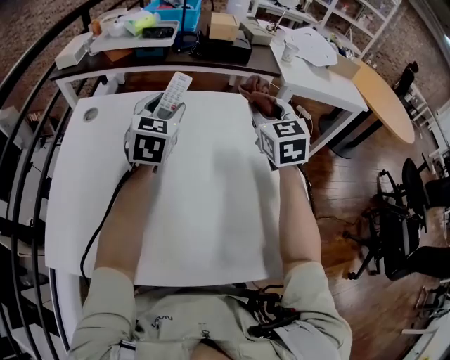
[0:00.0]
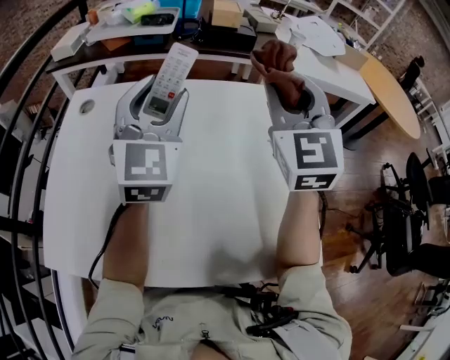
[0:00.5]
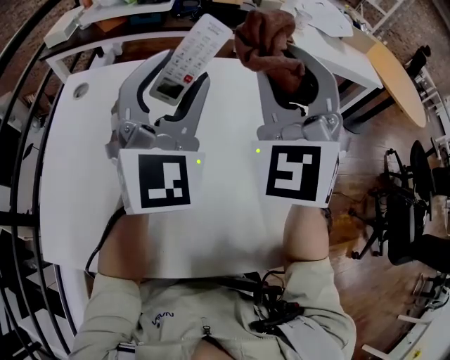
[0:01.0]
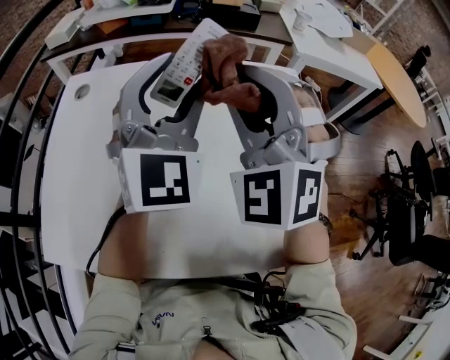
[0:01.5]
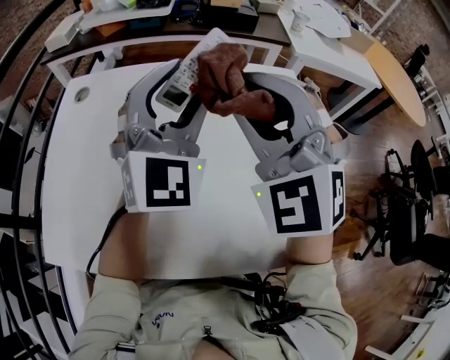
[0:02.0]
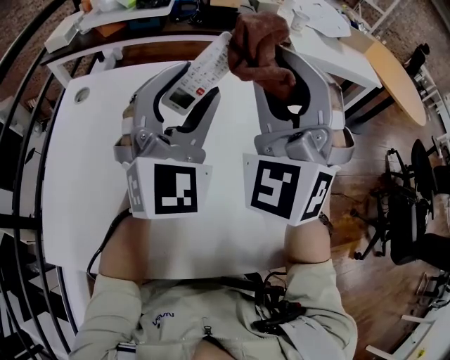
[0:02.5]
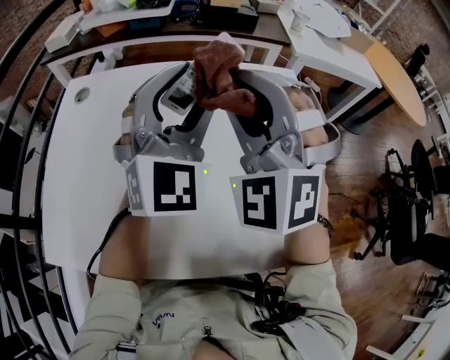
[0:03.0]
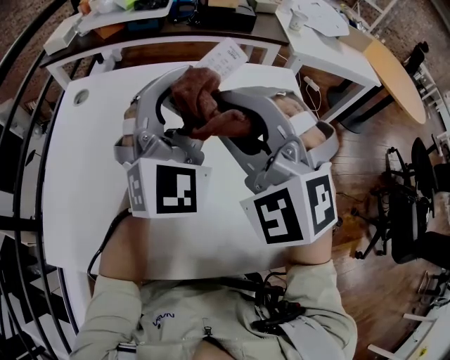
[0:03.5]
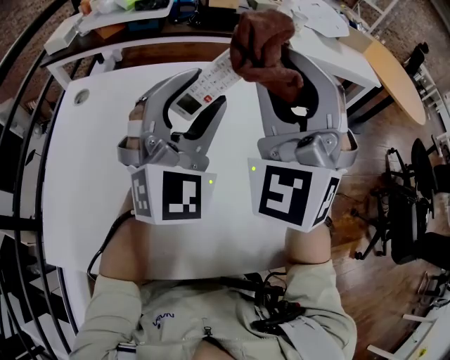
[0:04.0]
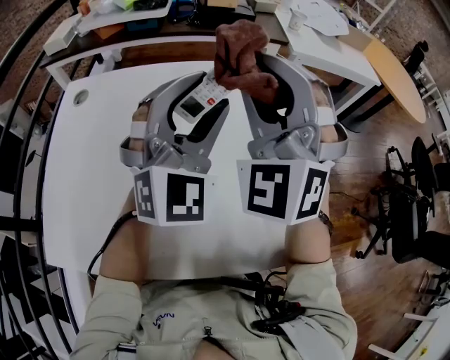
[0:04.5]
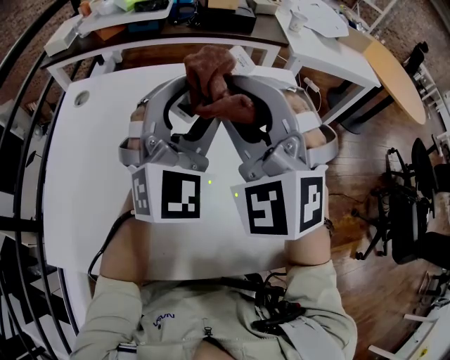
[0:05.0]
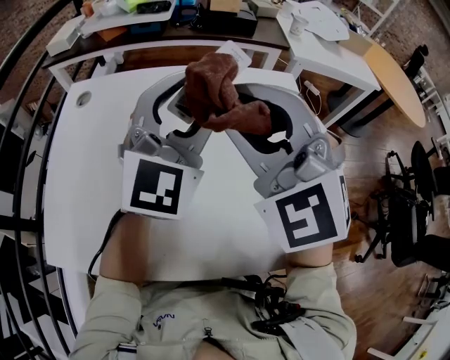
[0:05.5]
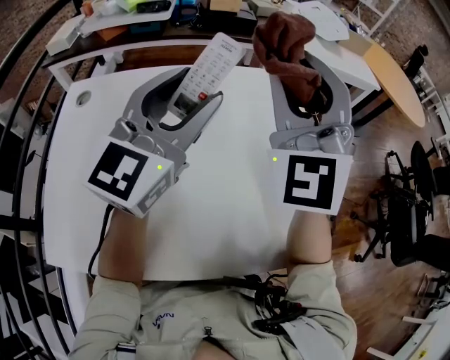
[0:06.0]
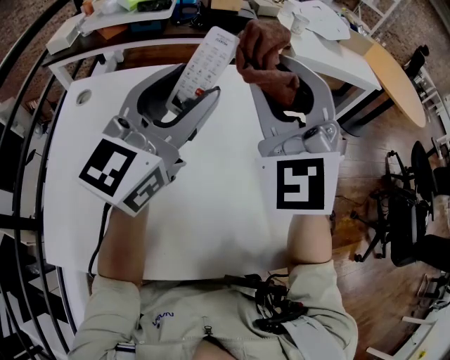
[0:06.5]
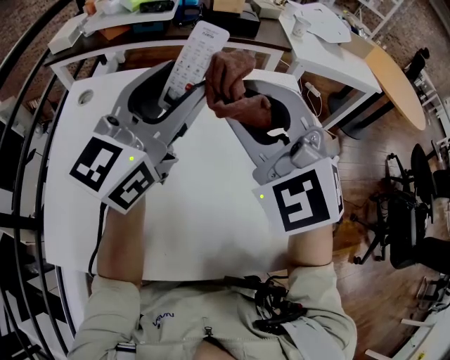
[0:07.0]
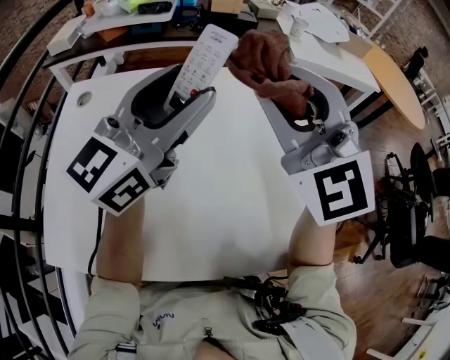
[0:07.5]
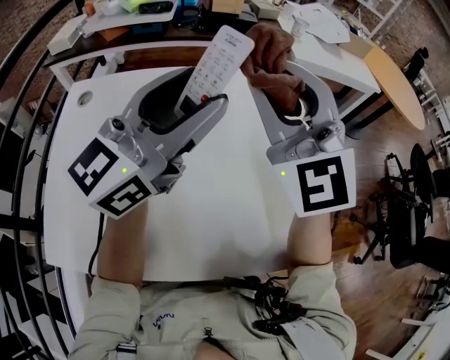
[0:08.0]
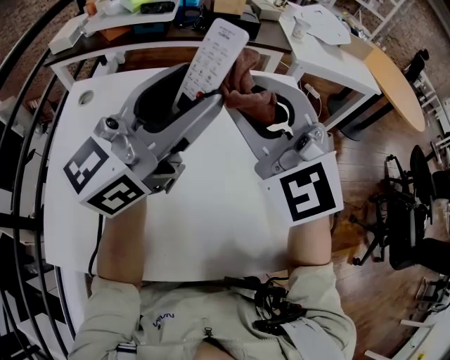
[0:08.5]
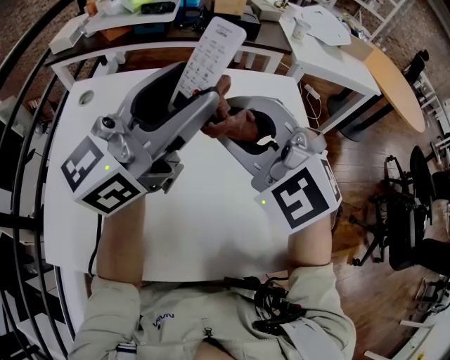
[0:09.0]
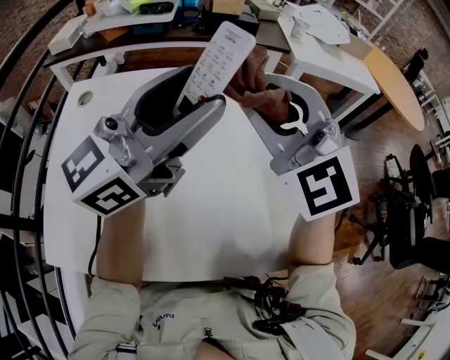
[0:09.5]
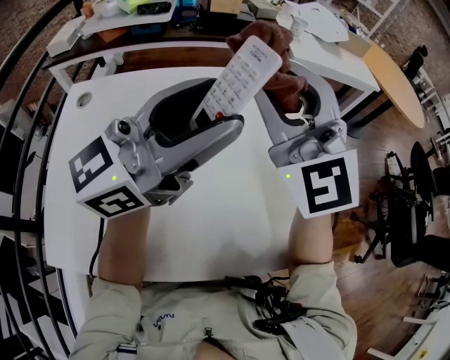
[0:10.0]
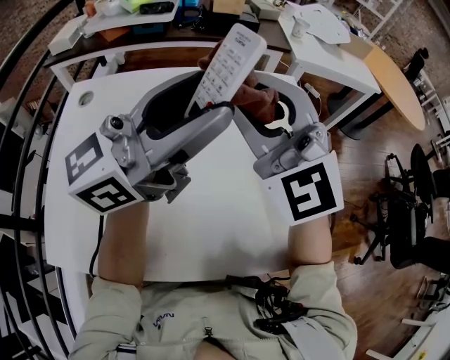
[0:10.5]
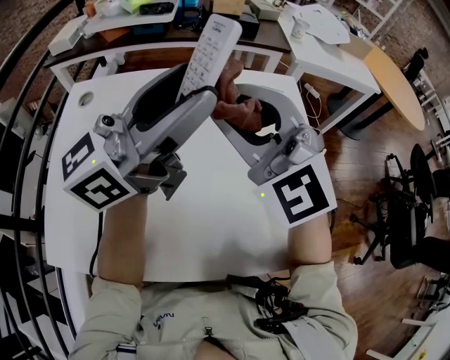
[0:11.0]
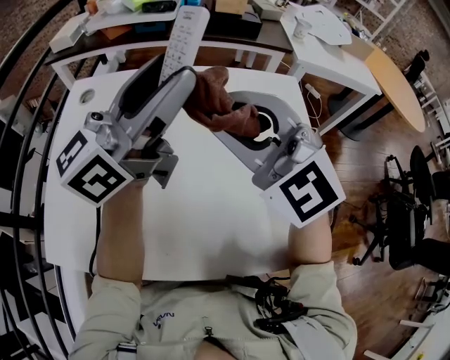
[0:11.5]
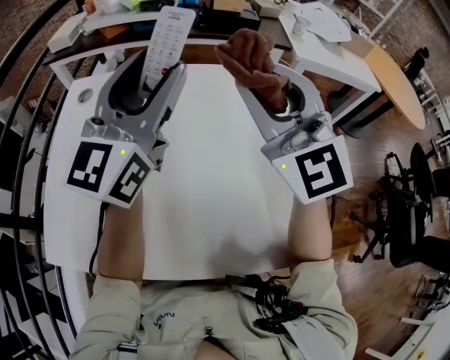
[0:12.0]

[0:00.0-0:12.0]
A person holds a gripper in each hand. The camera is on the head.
0:00.0 to 0:02.0: The right gripper is displaced backward, to the left and upward by approximately 20 cm, and rolls counterclockwise, seen from behind, by roughly 50 degrees; the left gripper shifts some 15 cm backward, upward and to the right, and rotates roughly 30 degrees.
0:02.0 to 0:04.0: The right gripper ends up some 5 cm from where it was, and turns by some 20 degrees.
0:04.0 to 0:06.0: The left gripper turns by about 40 degrees.
0:06.0 to 0:08.0: The left gripper changes its angle by roughly 20 degrees. The right gripper turns by approximately 20 degrees.
0:08.0 to 0:10.0: The right gripper reaches about 10 cm downward, then returns.
0:10.0 to 0:12.0: The left gripper moves to the left and forward, some 10 cm, and turns by some 40 degrees.

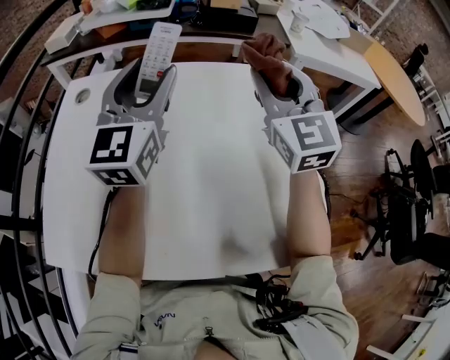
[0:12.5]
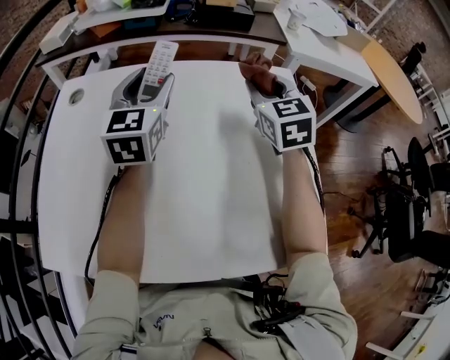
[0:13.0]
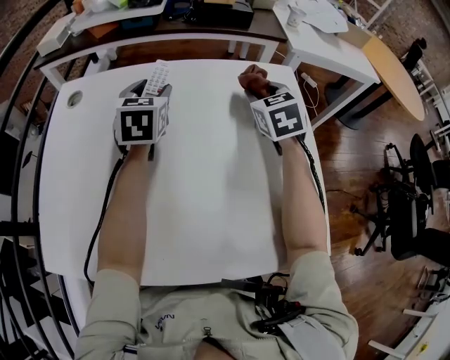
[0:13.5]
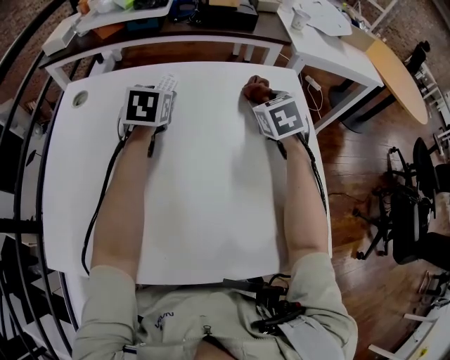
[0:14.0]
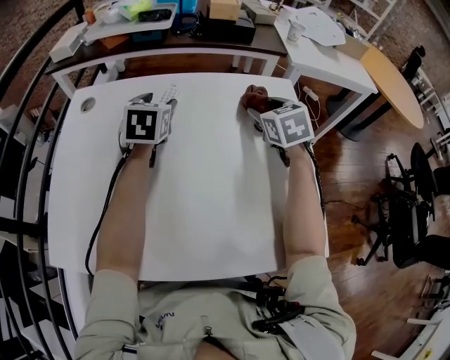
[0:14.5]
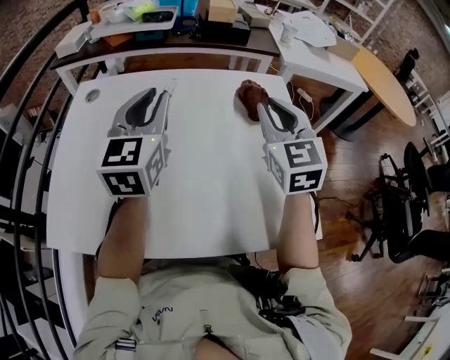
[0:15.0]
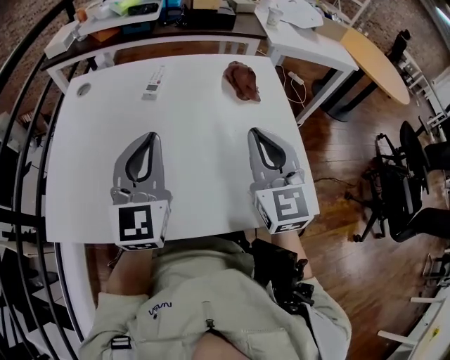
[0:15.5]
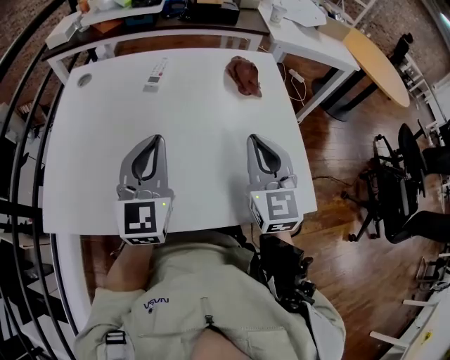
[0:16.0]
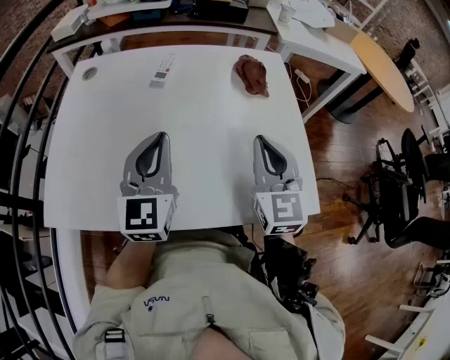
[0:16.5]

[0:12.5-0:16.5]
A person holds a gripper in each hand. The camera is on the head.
0:12.5 to 0:14.5: The left gripper is displaced downward and forward by about 15 cm, and angles its fingers downward, by approximately 40 degrees; the right gripper travels downward by some 15 cm, and tilts its fingers about 40 degrees downward.
0:14.5 to 0:16.5: Both grippers travel together backward, some 25 cm. The right gripper points its fingers some 30 degrees further upward, and closes up. Meanwhile the left gripper changes its angle by about 30 degrees, and closes its fingers.

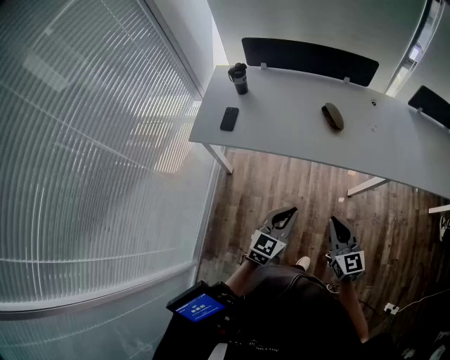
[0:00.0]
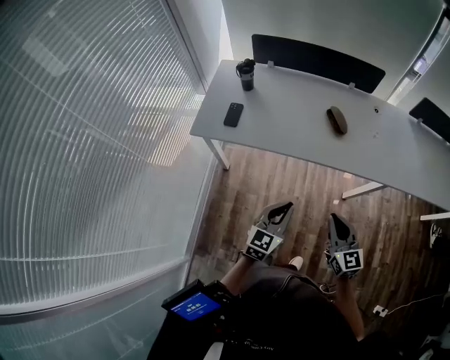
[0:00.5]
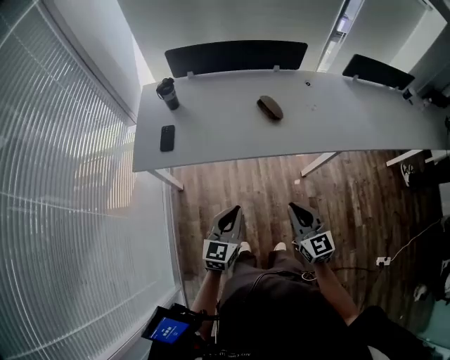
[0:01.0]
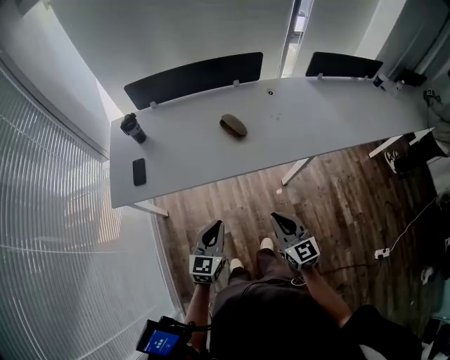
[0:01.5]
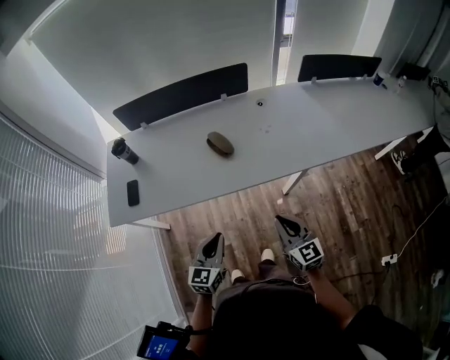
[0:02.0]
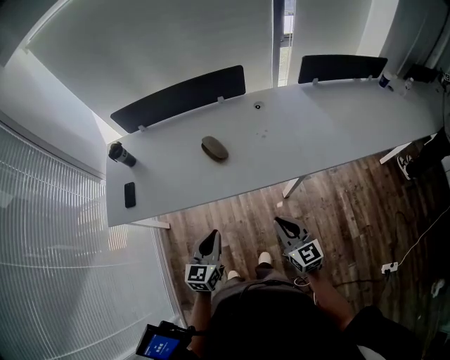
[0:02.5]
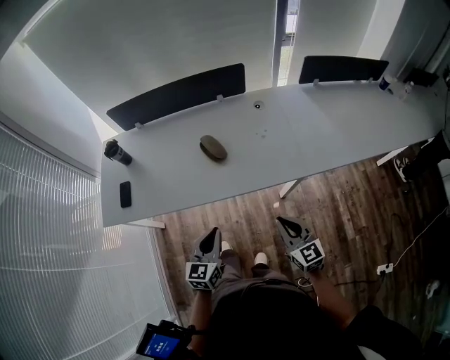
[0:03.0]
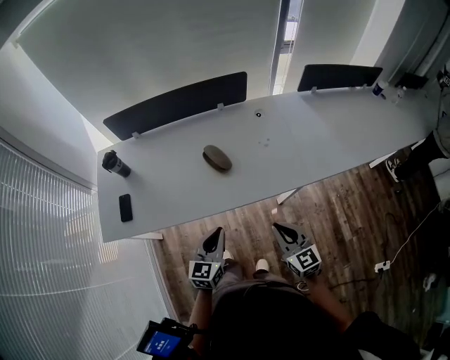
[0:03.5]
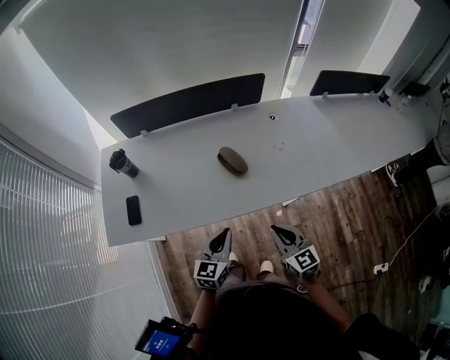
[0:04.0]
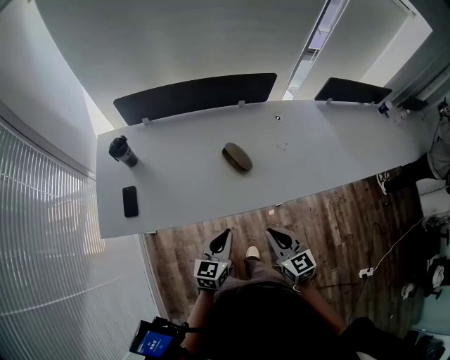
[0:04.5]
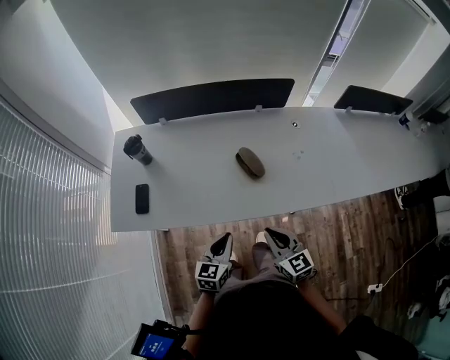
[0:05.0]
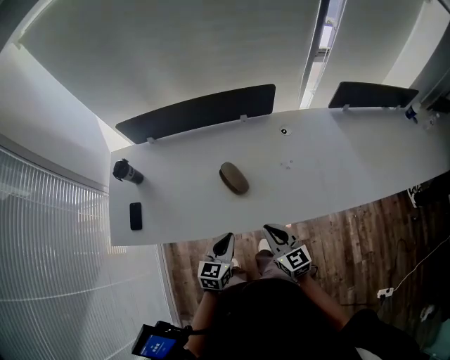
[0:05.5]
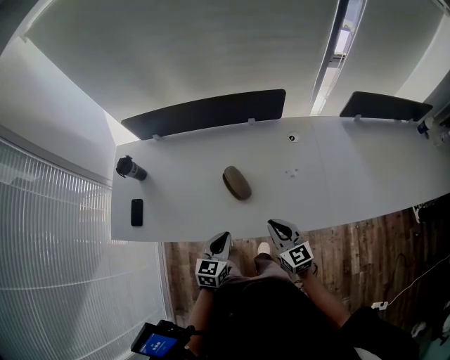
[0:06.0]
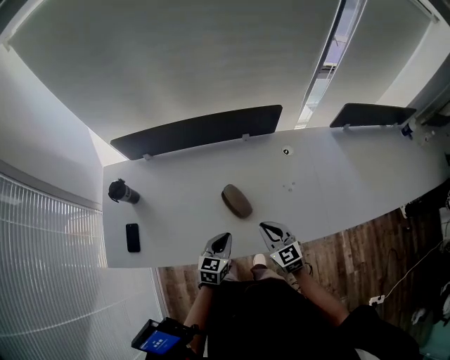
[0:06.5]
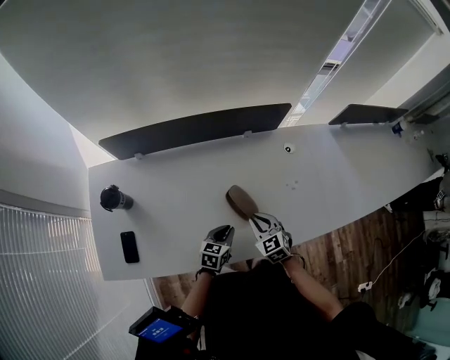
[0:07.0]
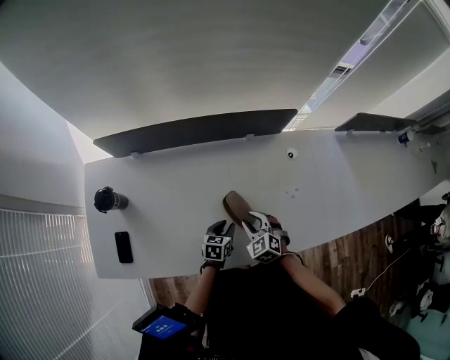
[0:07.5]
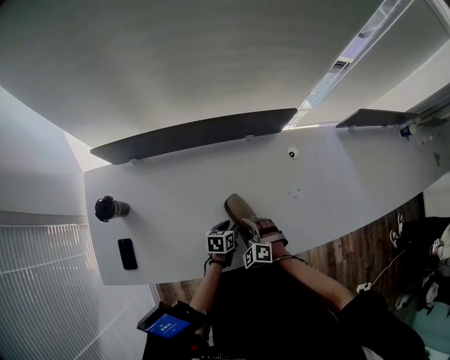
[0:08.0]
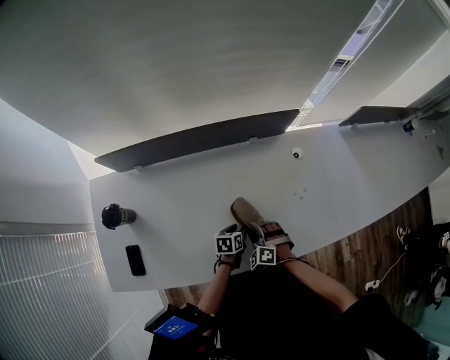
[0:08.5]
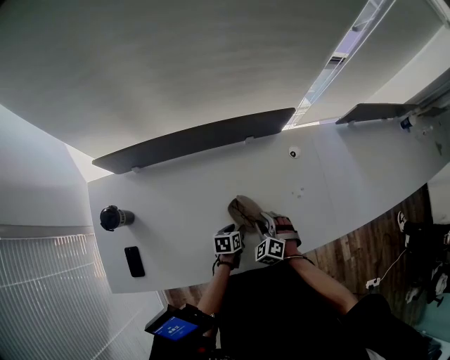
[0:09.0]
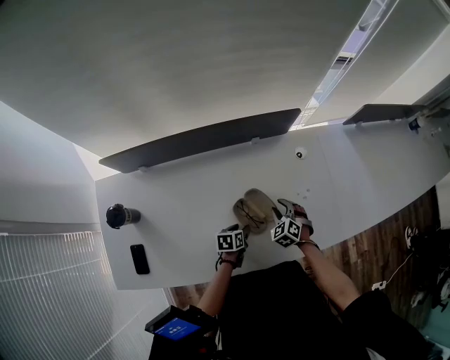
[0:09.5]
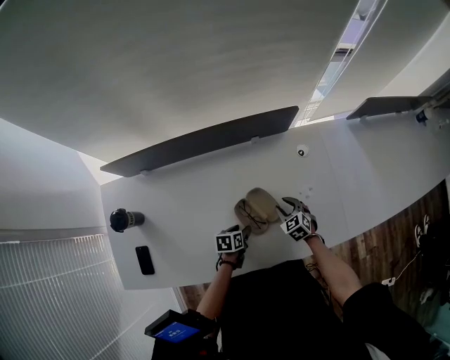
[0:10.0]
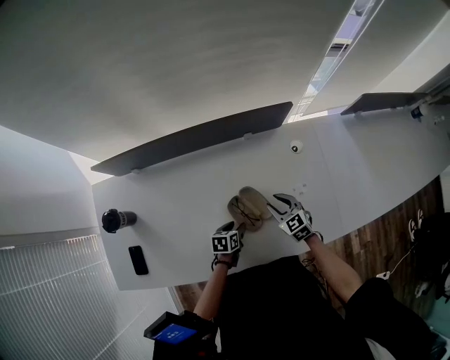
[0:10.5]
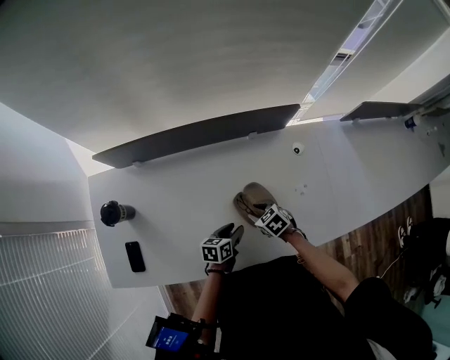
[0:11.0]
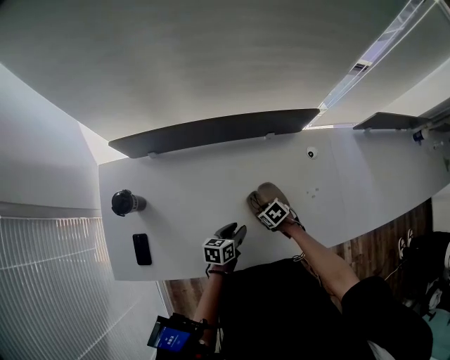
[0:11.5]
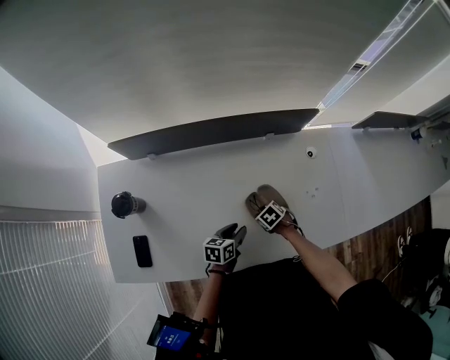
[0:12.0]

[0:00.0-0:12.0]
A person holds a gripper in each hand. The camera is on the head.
0:00.0 to 0:02.0: The left gripper moves forward and to the right, some 10 cm. The right gripper is displaced to the right and forward by some 15 cm.
0:02.0 to 0:04.0: The right gripper travels forward and to the left by approximately 15 cm. The left gripper goes roughly 15 cm forward.
0:04.0 to 0:06.0: Both grippers move forward and to the right, some 15 cm.
0:06.0 to 0:08.0: The right gripper heads to the left, downward and forward, covering about 25 cm, angles its fingers downward, by approximately 40 degrees, and opens its fingers, while the left gripper heads downward and forward, covering approximately 25 cm, turns by some 40 degrees, and opens.
0:08.0 to 0:10.0: The right gripper shifts about 15 cm forward and to the right, and turns by some 40 degrees.
0:10.0 to 0:12.0: The left gripper is displaced upward by about 5 cm, while the right gripper shifts by some 15 cm, and turns by some 30 degrees.
